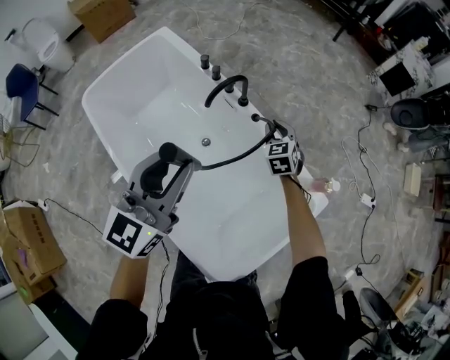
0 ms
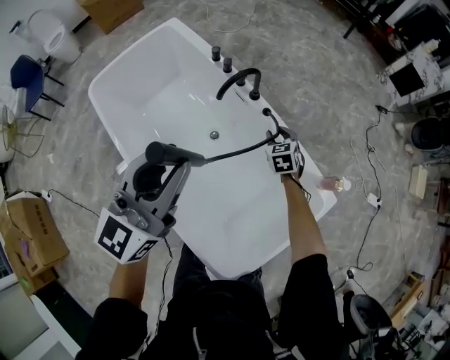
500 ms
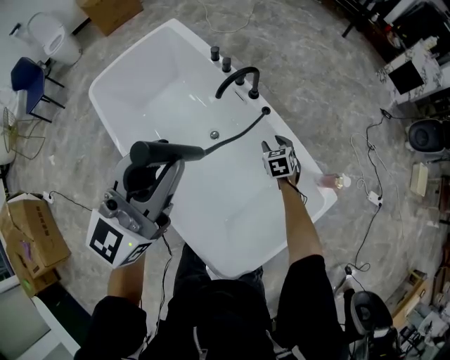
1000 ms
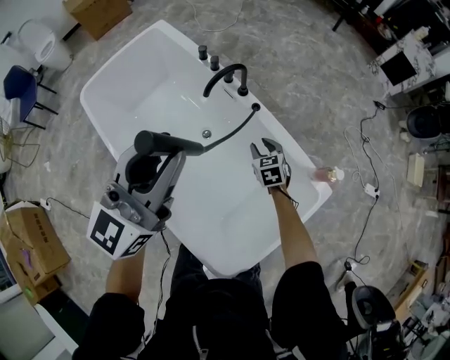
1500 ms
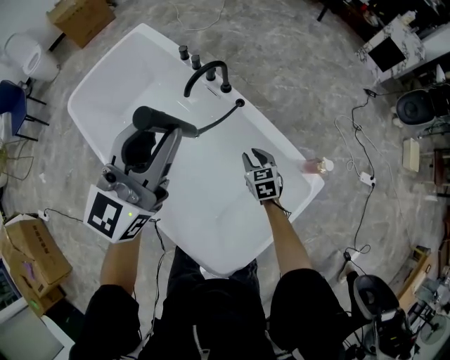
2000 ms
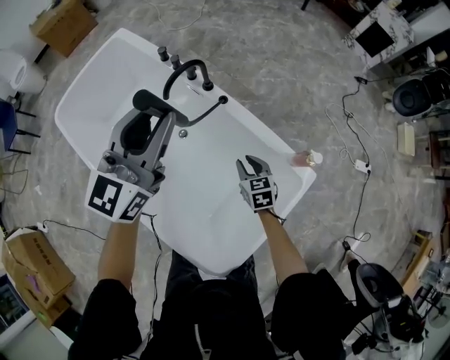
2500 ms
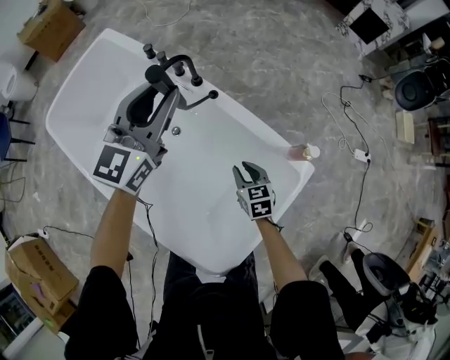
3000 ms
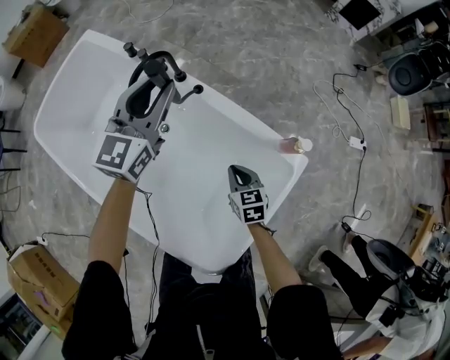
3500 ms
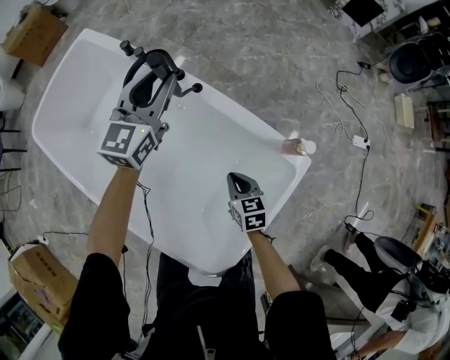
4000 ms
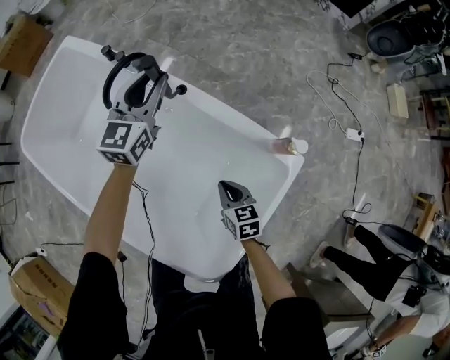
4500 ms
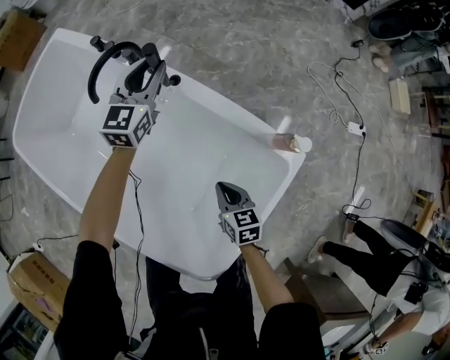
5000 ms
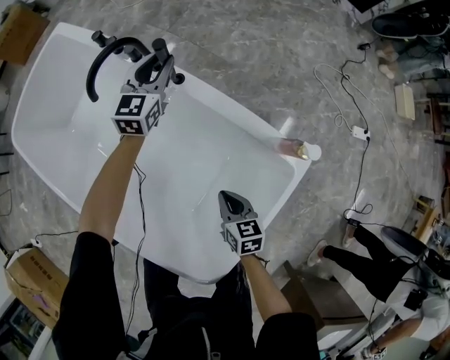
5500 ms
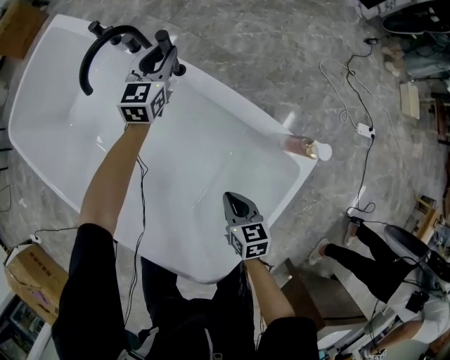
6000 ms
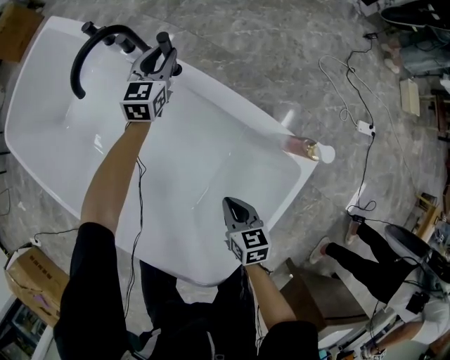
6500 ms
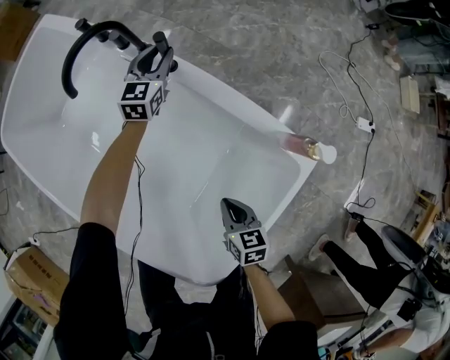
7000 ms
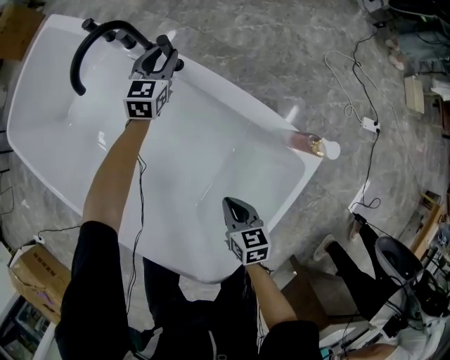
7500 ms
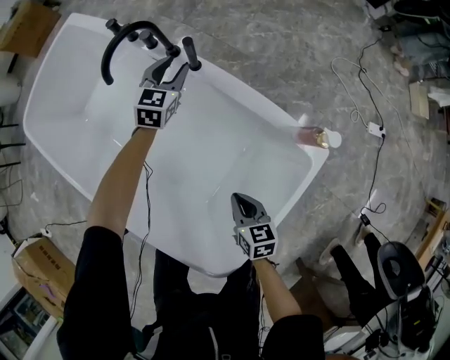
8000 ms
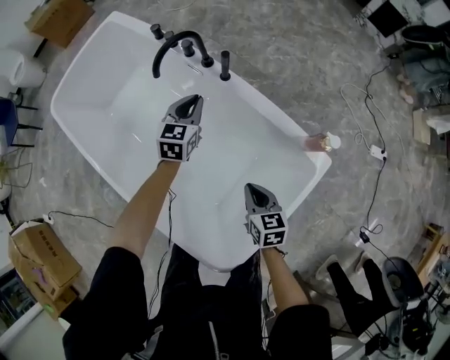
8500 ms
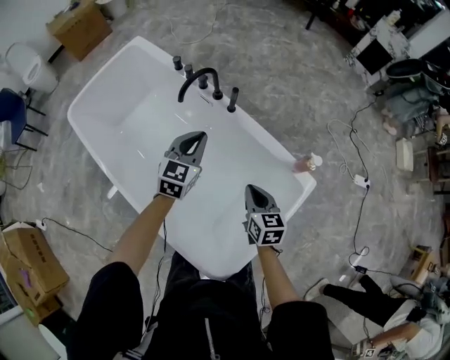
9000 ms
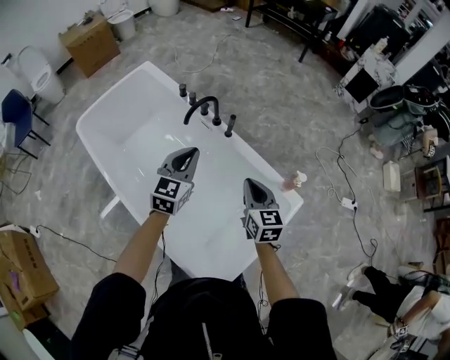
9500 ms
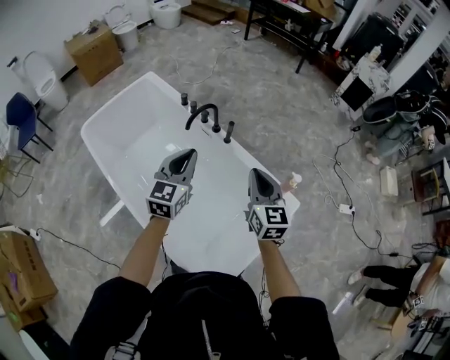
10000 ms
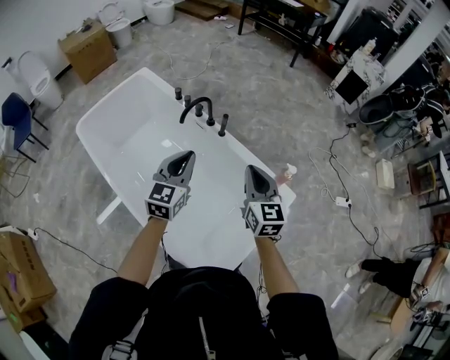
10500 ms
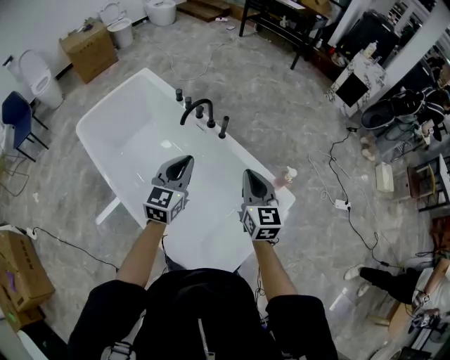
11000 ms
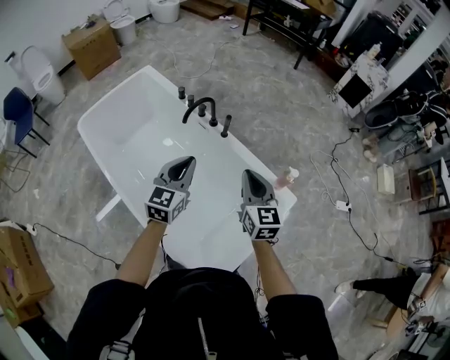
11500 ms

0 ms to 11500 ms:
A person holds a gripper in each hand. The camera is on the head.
0 ms to 2000 ms: The right gripper is displaced backward and downward by roughly 15 cm, and rotates approximately 20 degrees. The left gripper shifts by roughly 5 cm.
2000 ms to 4000 ms: The right gripper shifts roughly 10 cm backward and to the right, and closes up. The left gripper moves downward, forward and to the right, some 25 cm.
4000 ms to 6000 ms: The left gripper is displaced downward and forward by about 25 cm. Meanwhile the right gripper shifts about 10 cm downward and backward.
6000 ms to 7500 ms: The left gripper heads downward, covering about 5 cm.
7500 ms to 9500 ms: The right gripper shifts approximately 30 cm upward, and turns by approximately 30 degrees, while the left gripper moves upward and backward, some 40 cm, and closes its fingers.
9500 ms to 11500 ms: The left gripper goes approximately 5 cm backward, while the right gripper goes about 5 cm upward.

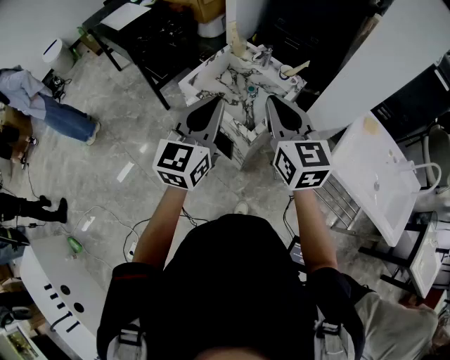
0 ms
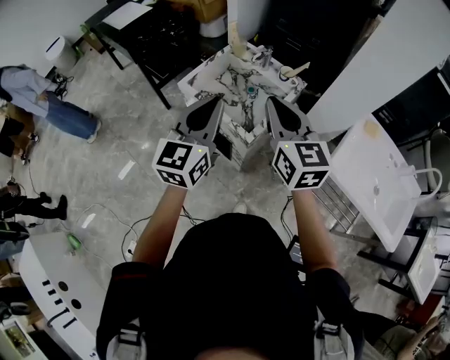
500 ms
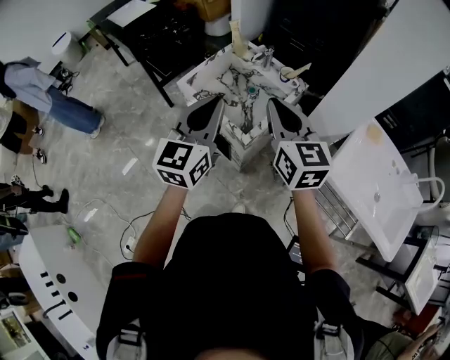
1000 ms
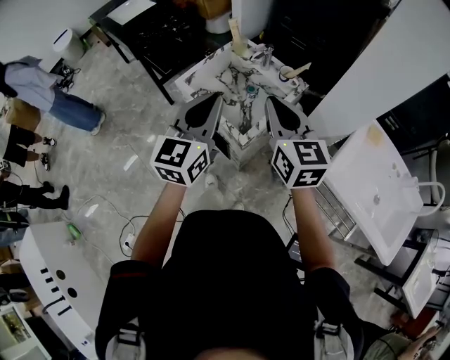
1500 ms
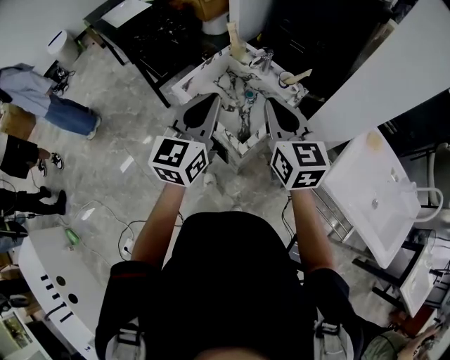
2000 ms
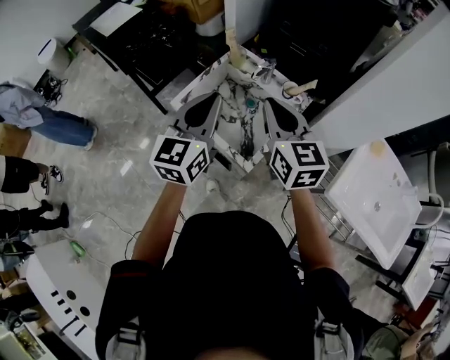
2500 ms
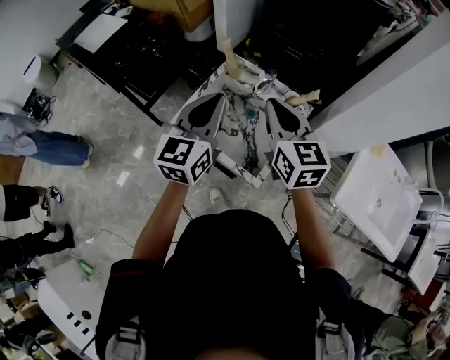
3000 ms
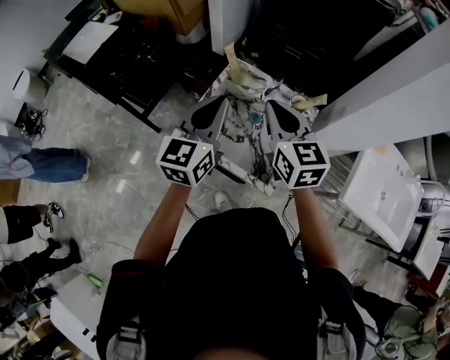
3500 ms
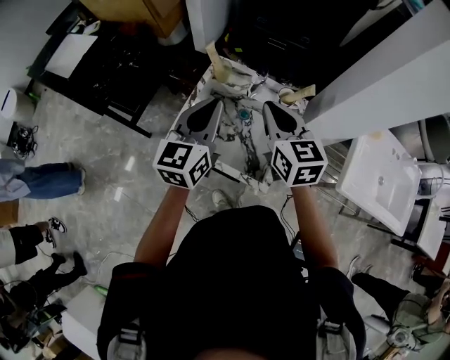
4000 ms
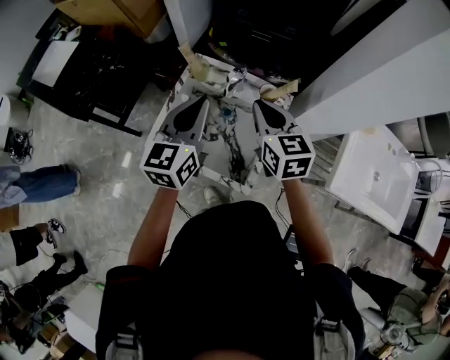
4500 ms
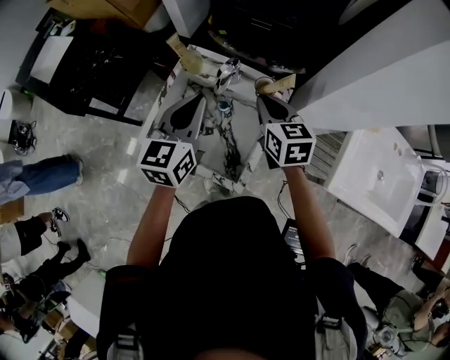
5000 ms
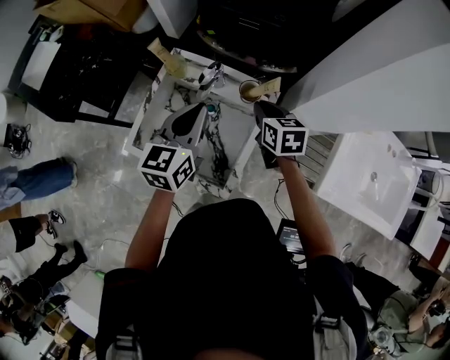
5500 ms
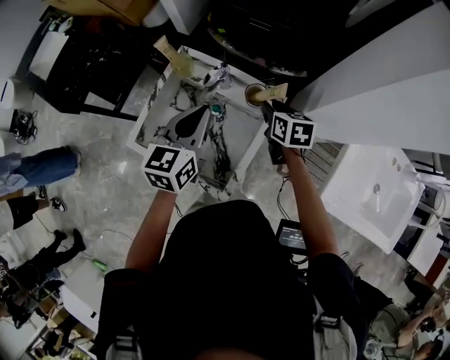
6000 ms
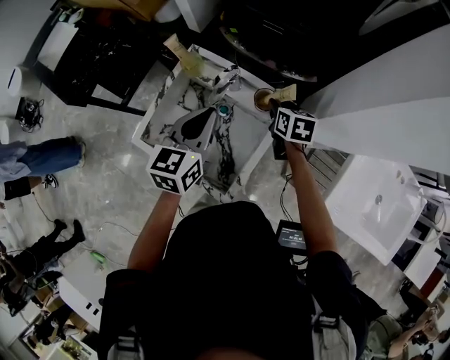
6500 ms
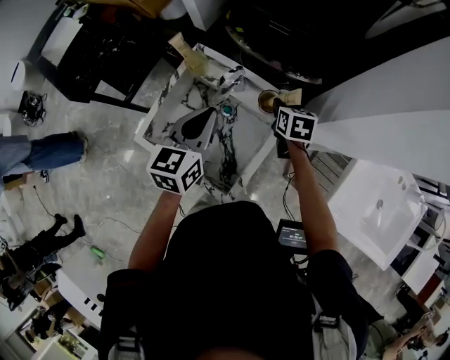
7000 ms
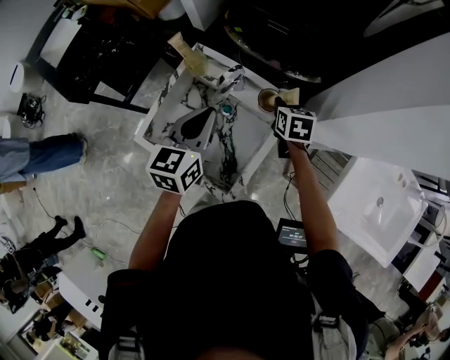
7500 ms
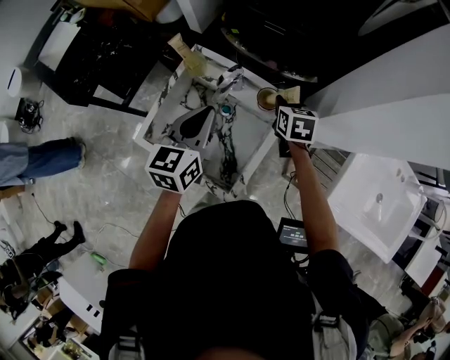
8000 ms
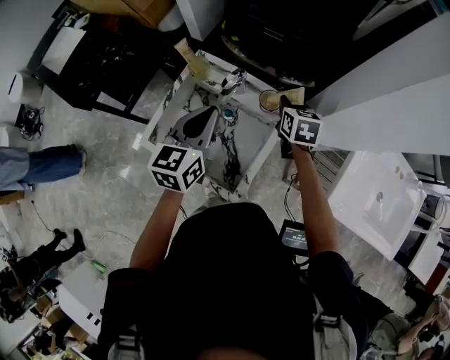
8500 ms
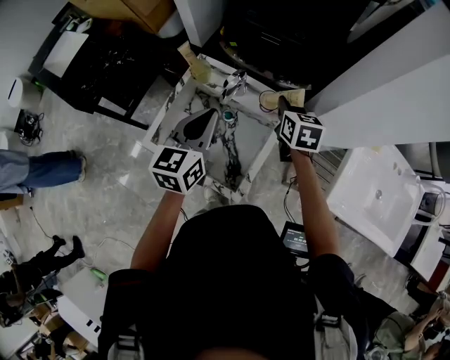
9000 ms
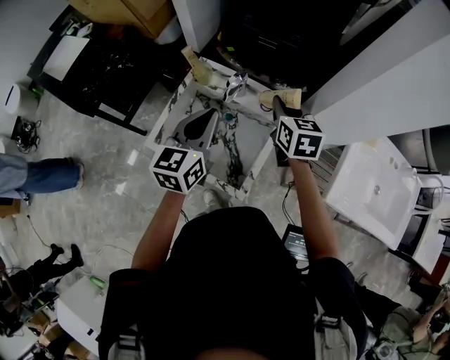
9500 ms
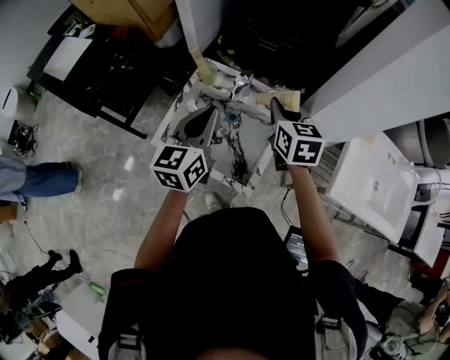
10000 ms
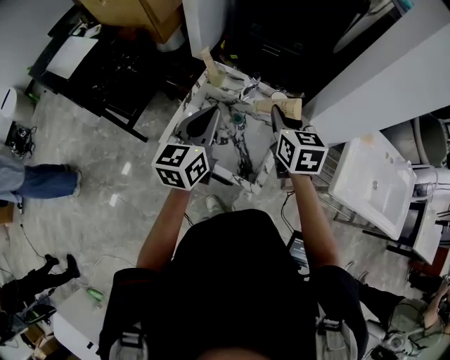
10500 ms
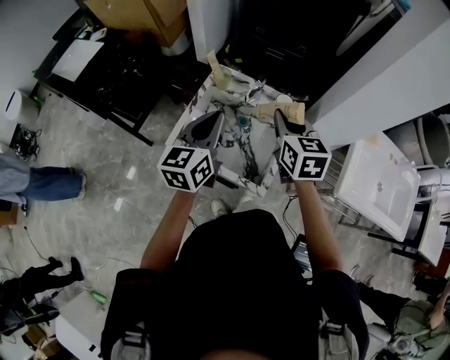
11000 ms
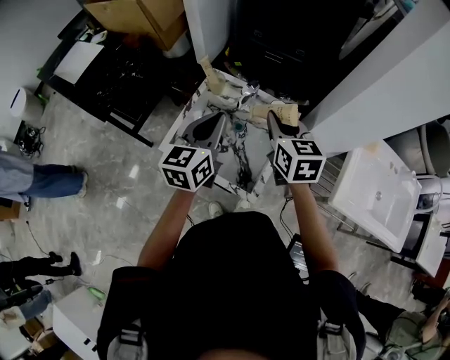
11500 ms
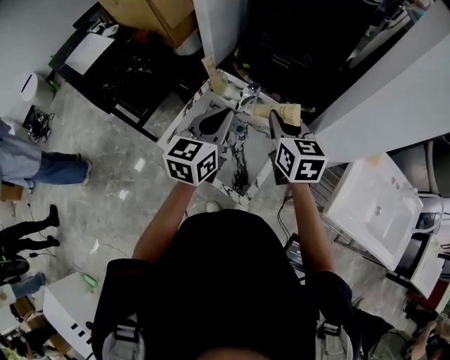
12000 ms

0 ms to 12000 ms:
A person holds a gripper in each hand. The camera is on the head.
0 ms to 2000 ms: The grippers both shift forward by some 10 cm.
2000 ms to 4000 ms: Both grippers travel together forward, approximately 20 cm.
4000 ms to 6000 ms: The left gripper heads to the right, downward and forward, covering roughly 15 cm. Meanwhile the right gripper moves downward, to the right and forward, roughly 30 cm, and rotates about 30 degrees.
6000 ms to 8000 ms: The grippers move only a little.
8000 ms to 10000 ms: The right gripper moves upward, backward and to the left, about 20 cm. Meanwhile the left gripper goes approximately 10 cm backward and upward.

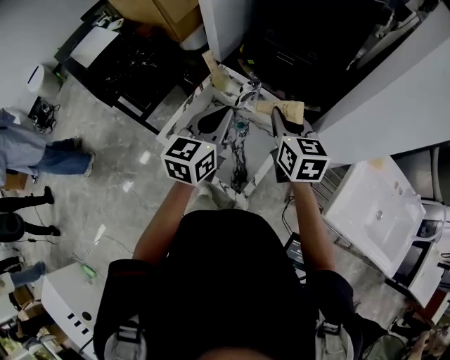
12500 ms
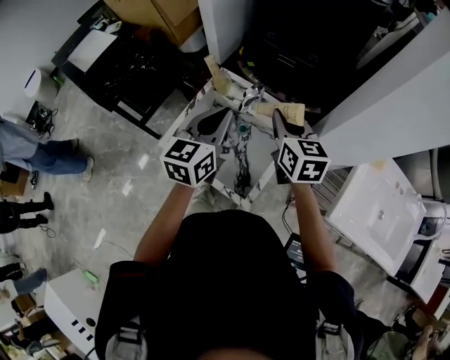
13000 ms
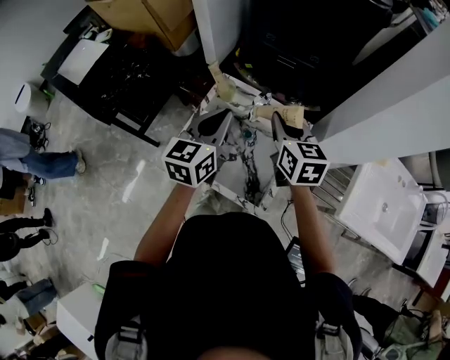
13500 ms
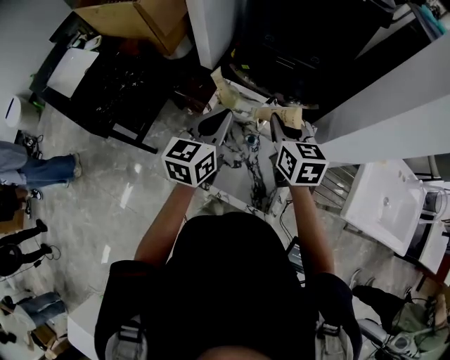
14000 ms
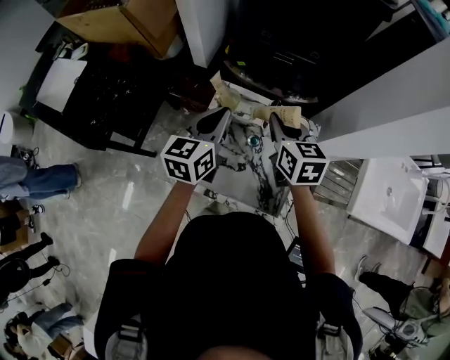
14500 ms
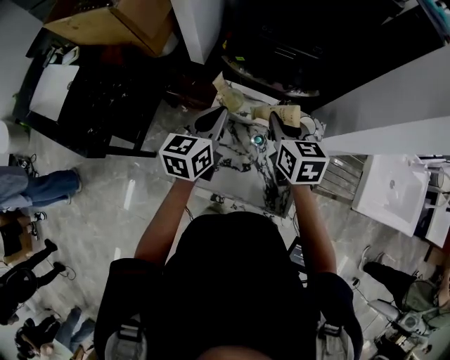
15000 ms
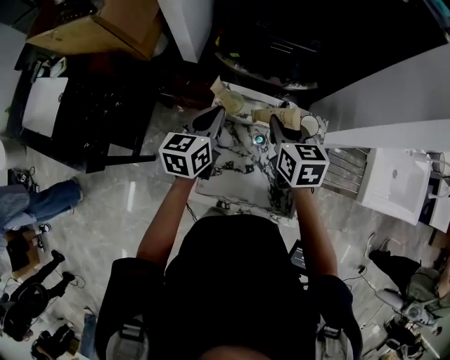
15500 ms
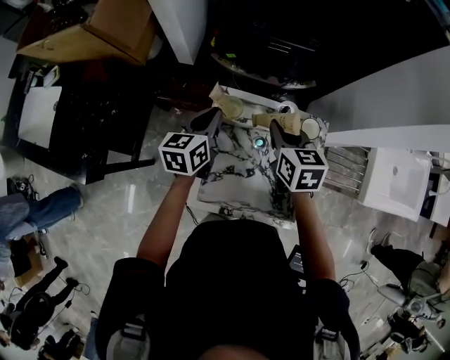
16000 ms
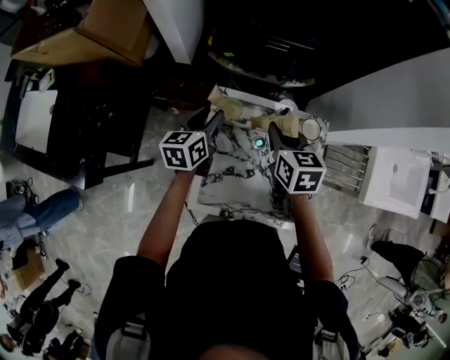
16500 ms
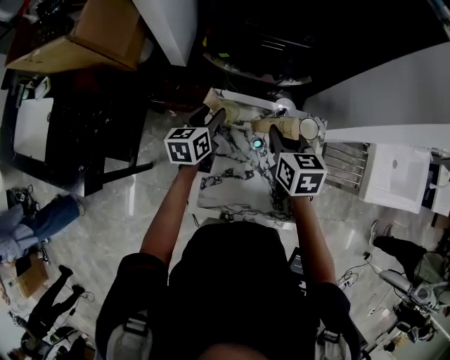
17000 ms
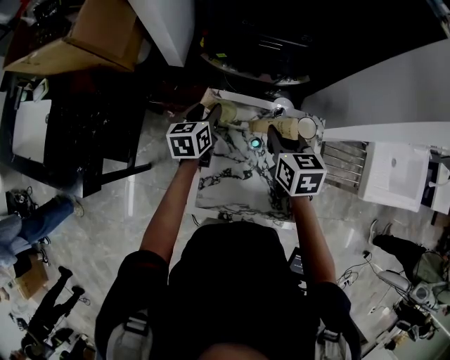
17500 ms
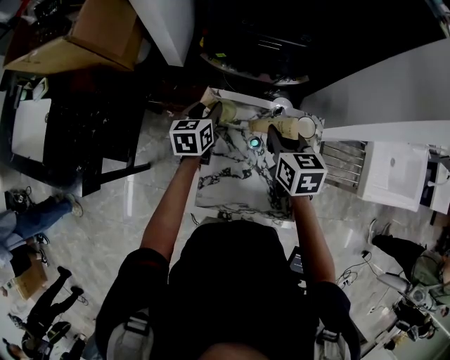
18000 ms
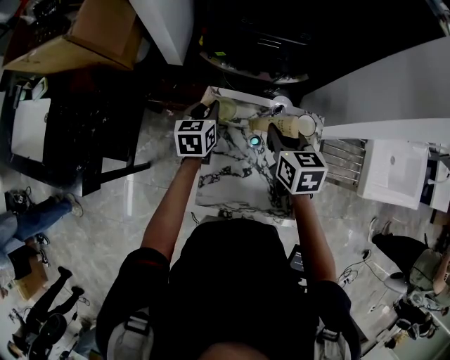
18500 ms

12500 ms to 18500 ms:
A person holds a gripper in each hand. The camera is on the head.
12500 ms to 14500 ms: The left gripper shifts some 20 cm forward and to the left. The right gripper moves to the left and forward, roughly 15 cm.
14500 ms to 16500 ms: The left gripper goes roughly 20 cm downward, forward and to the left, and opens; the right gripper goes approximately 10 cm downward.
16500 ms to 18500 ms: The left gripper moves roughly 5 cm.
